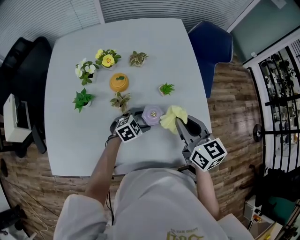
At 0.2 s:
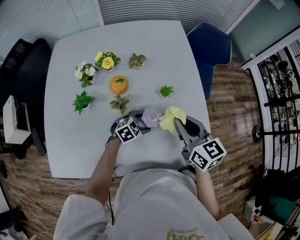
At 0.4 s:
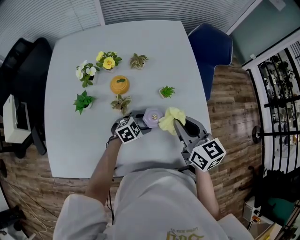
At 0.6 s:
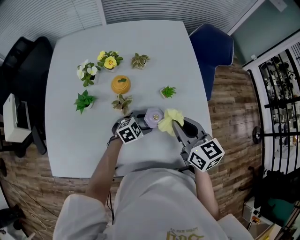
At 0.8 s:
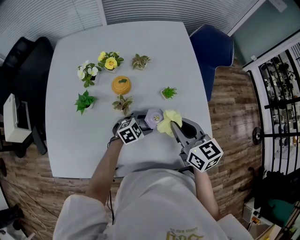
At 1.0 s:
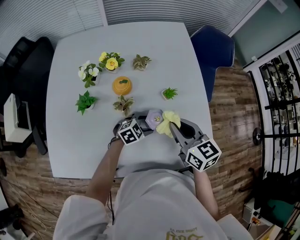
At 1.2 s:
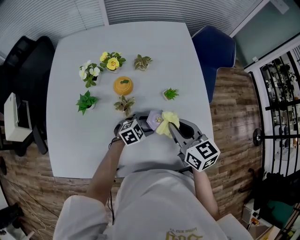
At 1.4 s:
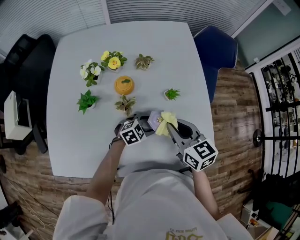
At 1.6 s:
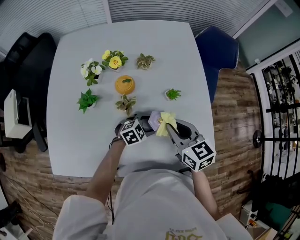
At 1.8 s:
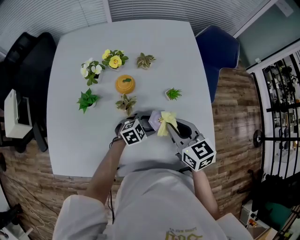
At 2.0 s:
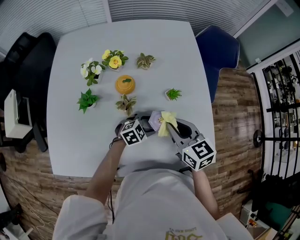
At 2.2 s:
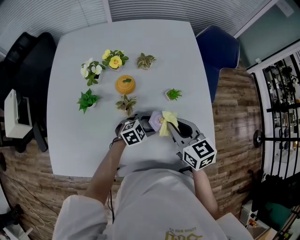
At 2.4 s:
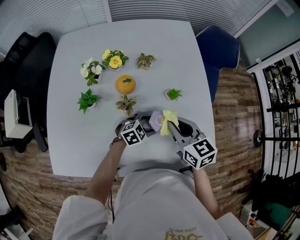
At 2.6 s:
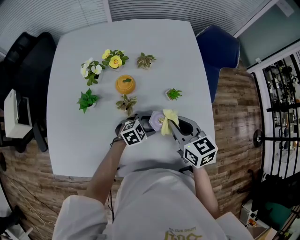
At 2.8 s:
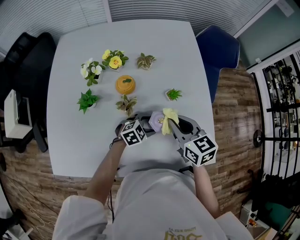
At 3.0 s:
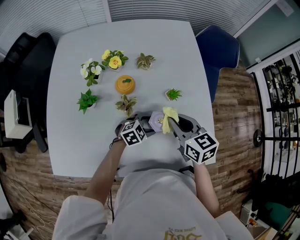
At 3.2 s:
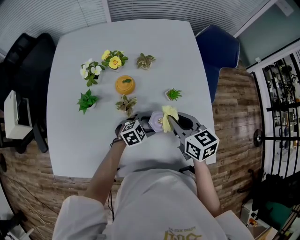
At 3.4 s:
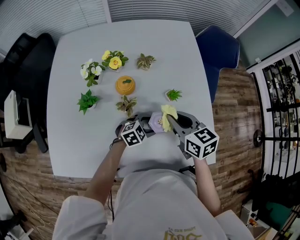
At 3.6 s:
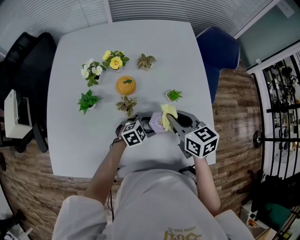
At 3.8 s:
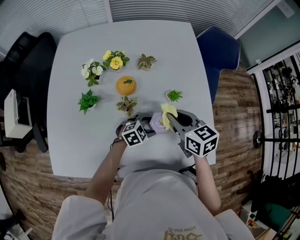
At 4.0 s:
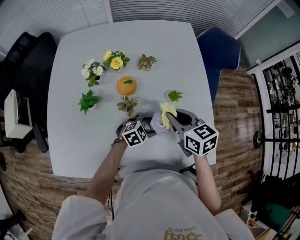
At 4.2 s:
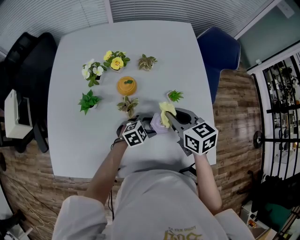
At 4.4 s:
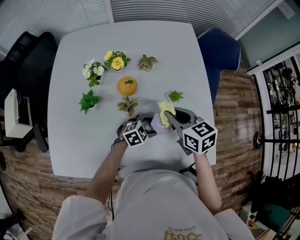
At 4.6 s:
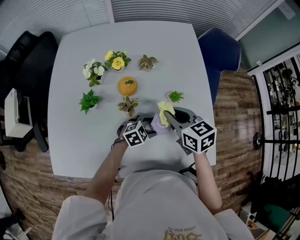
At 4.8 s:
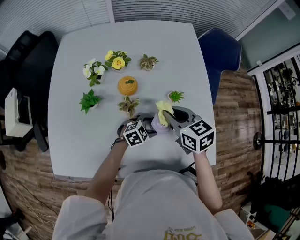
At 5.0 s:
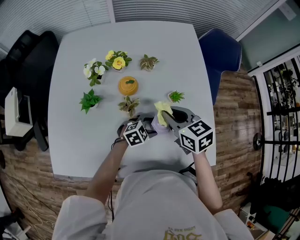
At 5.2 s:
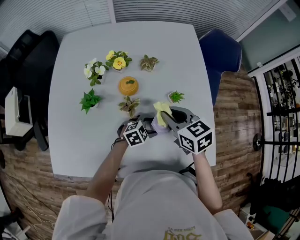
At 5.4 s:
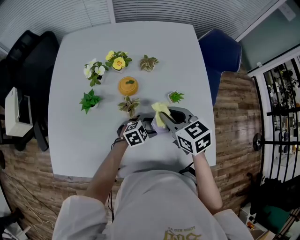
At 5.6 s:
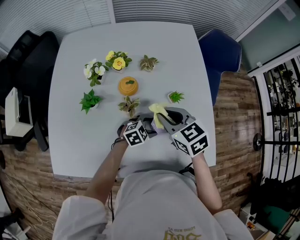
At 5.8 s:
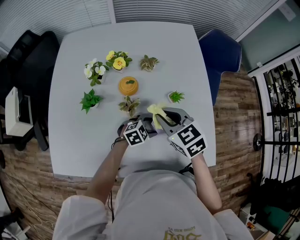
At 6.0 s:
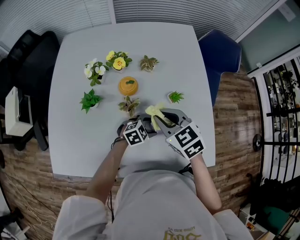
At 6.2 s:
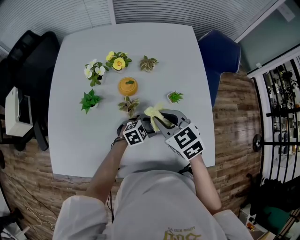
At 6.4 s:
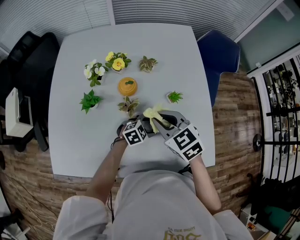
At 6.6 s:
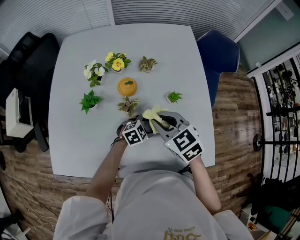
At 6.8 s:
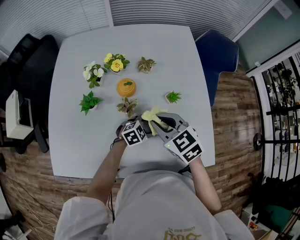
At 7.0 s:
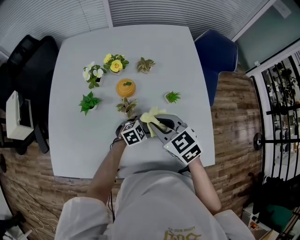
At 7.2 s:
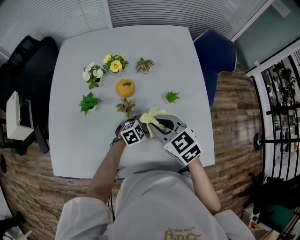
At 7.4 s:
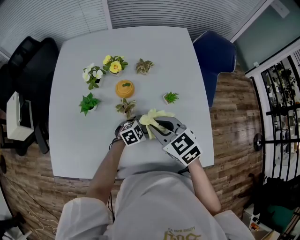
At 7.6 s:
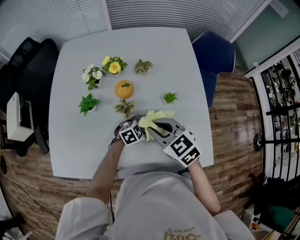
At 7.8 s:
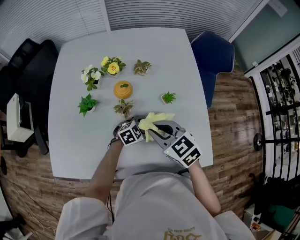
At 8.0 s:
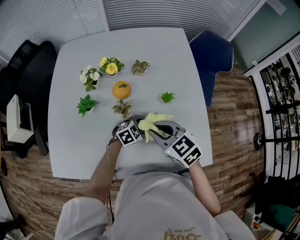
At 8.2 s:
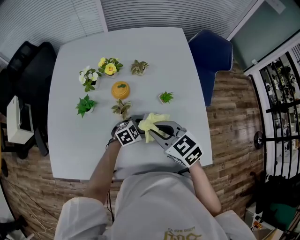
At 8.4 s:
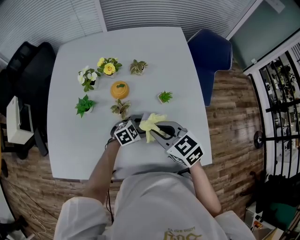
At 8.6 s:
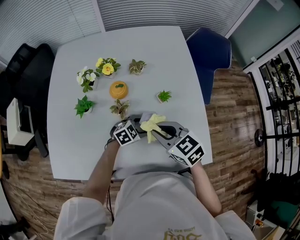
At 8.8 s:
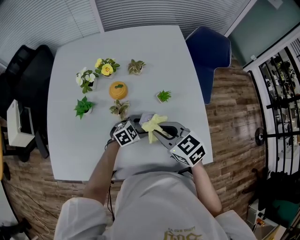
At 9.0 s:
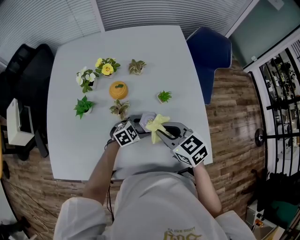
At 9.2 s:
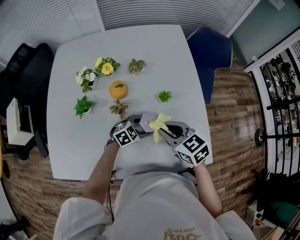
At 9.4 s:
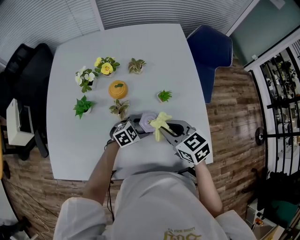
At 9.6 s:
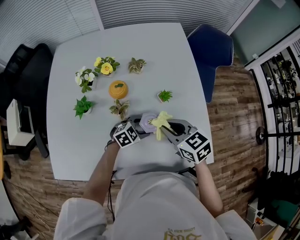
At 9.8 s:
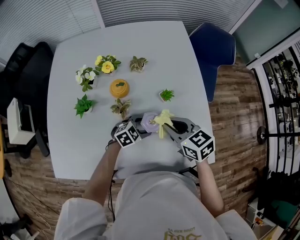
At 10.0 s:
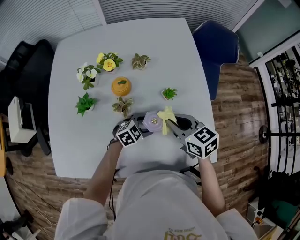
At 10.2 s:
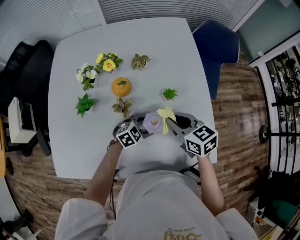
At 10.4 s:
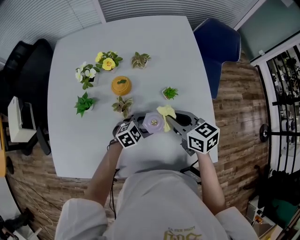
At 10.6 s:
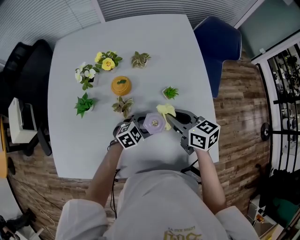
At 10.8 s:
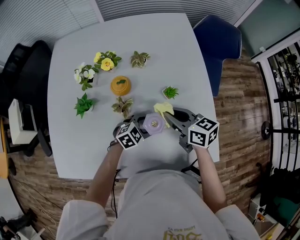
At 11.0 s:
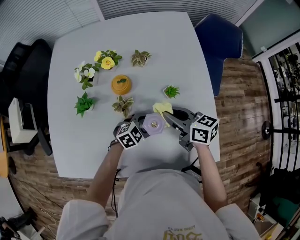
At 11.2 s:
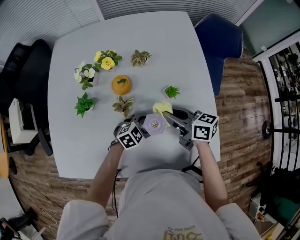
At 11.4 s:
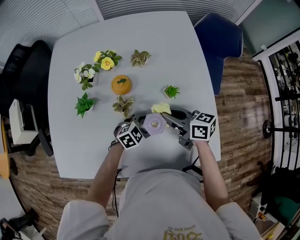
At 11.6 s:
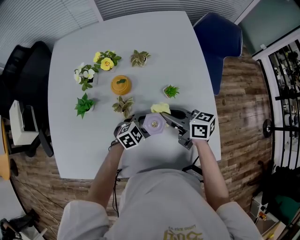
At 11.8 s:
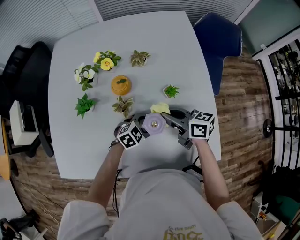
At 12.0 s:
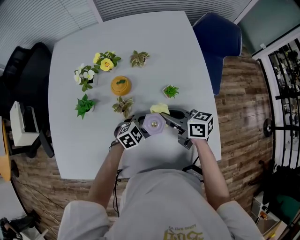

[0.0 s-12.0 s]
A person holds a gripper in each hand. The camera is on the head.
0.0 to 1.6 s: The right gripper travels to the left by roughly 5 cm.
1.6 to 4.4 s: There are only small adjustments of the grippers.
4.4 to 6.0 s: The right gripper ends up approximately 5 cm from where it was, and swivels some 20 degrees.
6.0 to 7.6 s: The grippers stay close to where they were, moving slightly.
7.6 to 9.0 s: The right gripper heads to the right, covering approximately 5 cm.
9.0 to 10.4 s: The right gripper shifts approximately 5 cm forward.
10.4 to 12.0 s: The right gripper swivels about 20 degrees.

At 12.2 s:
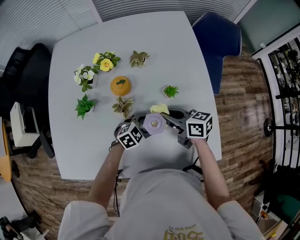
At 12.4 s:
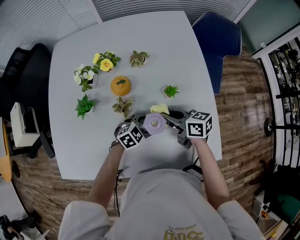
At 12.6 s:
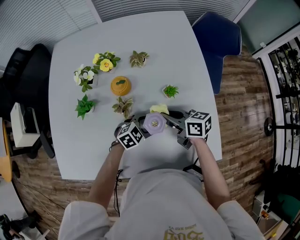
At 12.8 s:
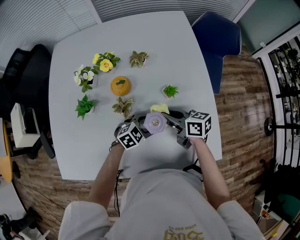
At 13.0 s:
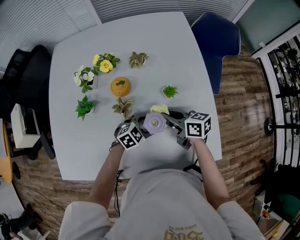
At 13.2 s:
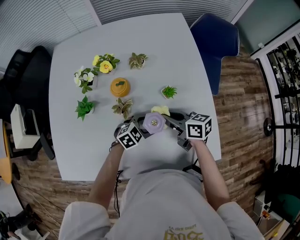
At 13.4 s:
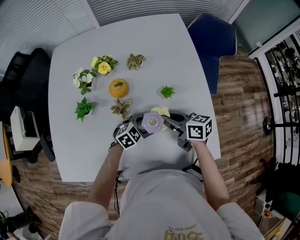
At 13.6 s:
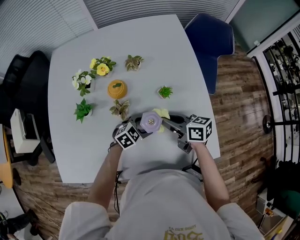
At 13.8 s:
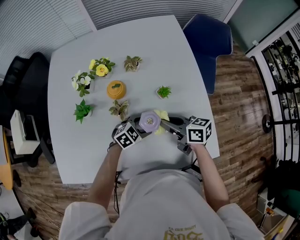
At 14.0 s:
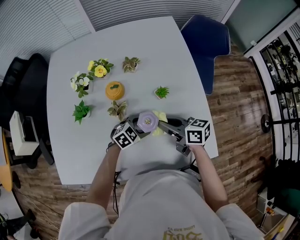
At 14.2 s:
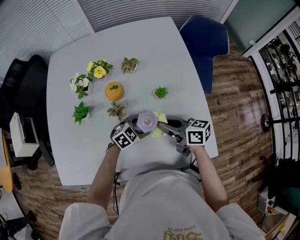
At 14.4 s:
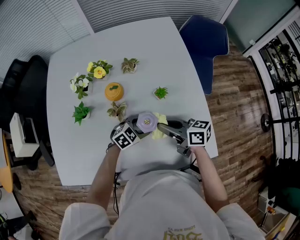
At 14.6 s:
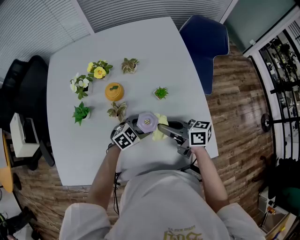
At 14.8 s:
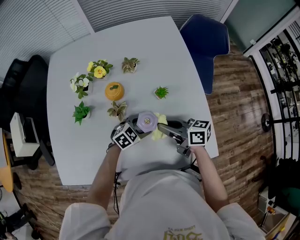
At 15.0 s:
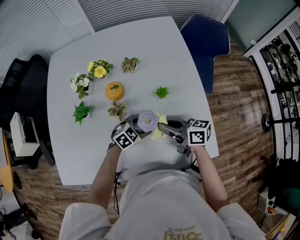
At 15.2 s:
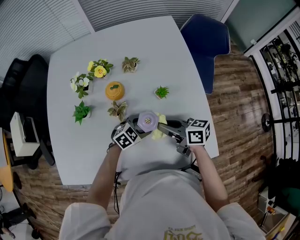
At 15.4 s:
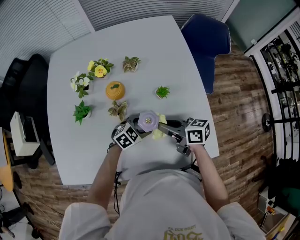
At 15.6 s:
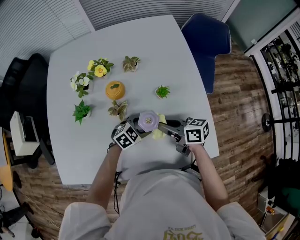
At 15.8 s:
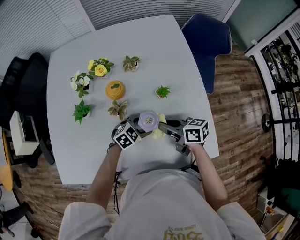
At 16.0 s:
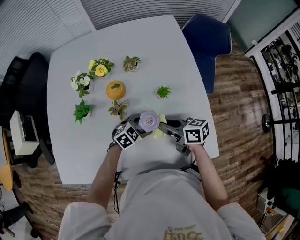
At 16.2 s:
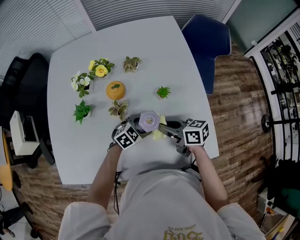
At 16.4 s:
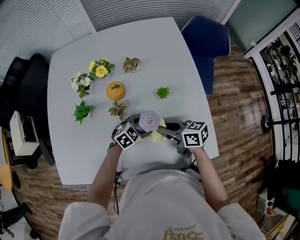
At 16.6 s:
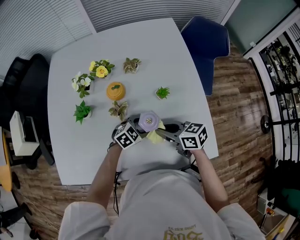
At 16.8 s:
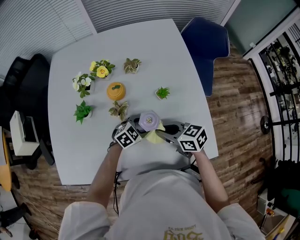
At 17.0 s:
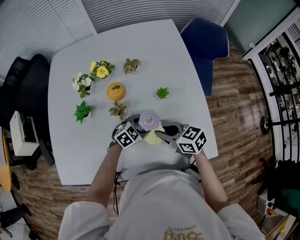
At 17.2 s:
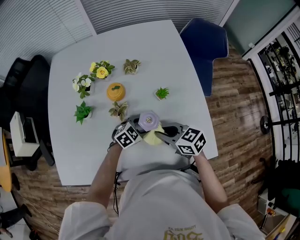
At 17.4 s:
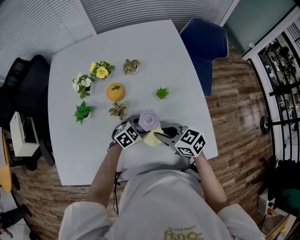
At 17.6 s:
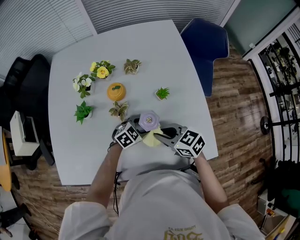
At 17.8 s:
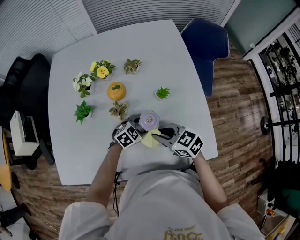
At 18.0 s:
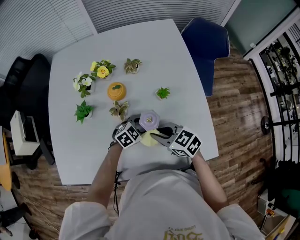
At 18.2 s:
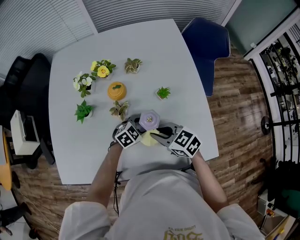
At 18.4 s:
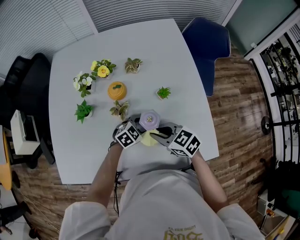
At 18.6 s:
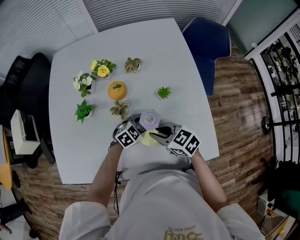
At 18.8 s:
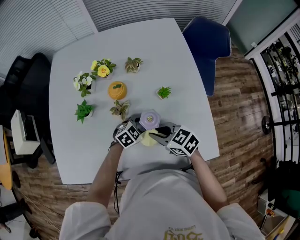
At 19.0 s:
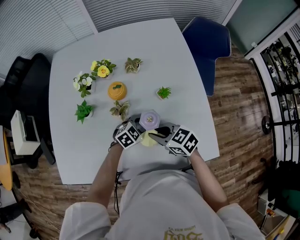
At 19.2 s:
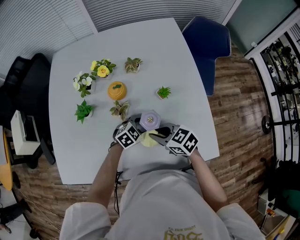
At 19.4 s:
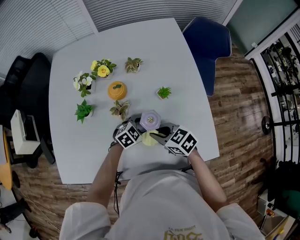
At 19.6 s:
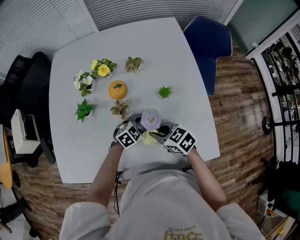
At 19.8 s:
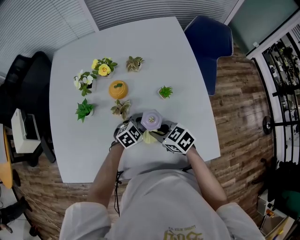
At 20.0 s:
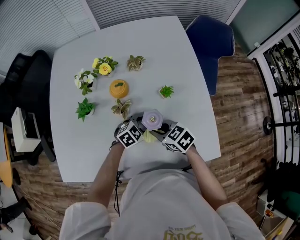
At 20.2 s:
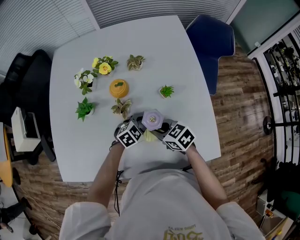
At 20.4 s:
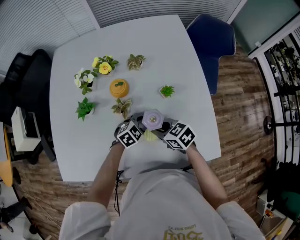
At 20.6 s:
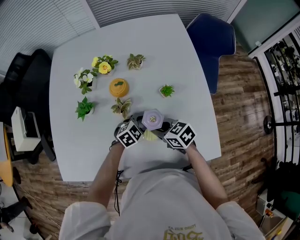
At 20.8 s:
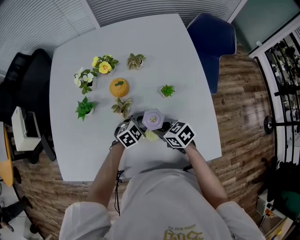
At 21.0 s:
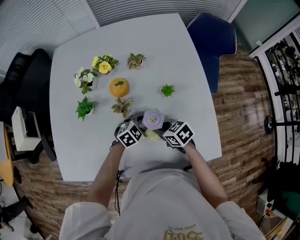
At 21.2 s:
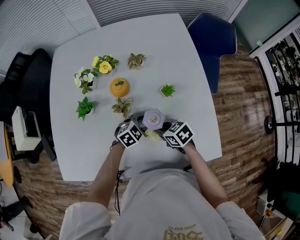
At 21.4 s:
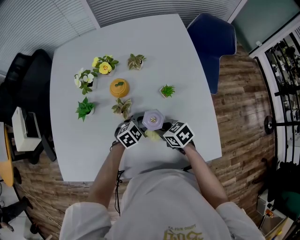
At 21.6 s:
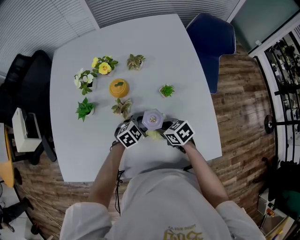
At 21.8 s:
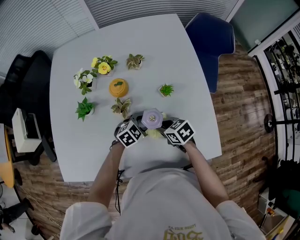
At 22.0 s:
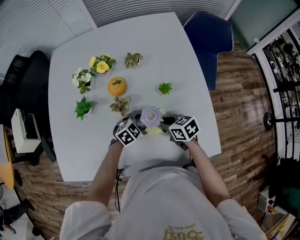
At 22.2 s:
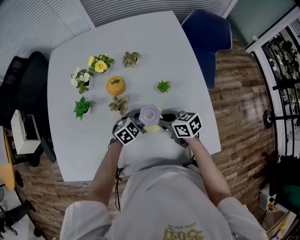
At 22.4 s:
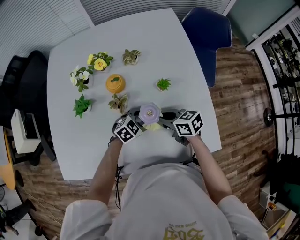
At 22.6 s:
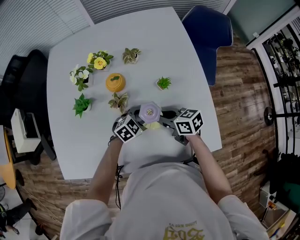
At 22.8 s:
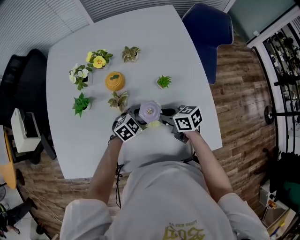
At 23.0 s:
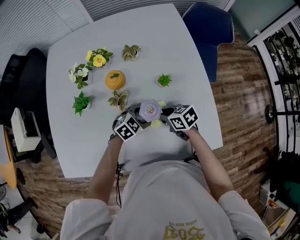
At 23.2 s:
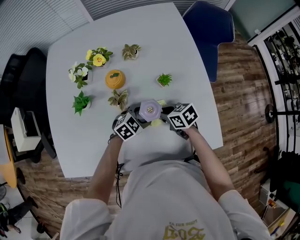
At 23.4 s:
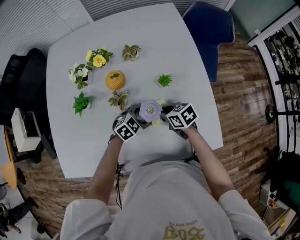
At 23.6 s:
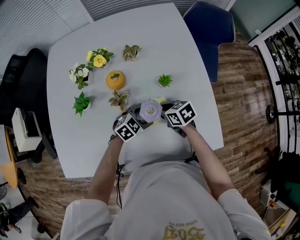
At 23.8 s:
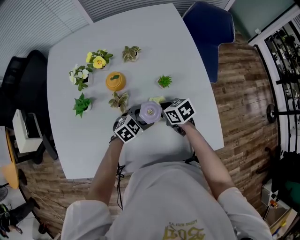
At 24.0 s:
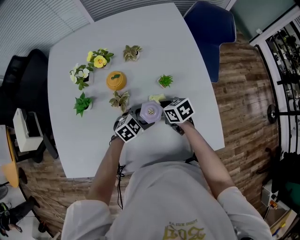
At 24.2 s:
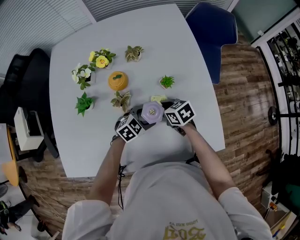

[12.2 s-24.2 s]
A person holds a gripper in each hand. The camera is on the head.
12.2 to 15.2 s: There are only small adjustments of the grippers.
15.2 to 16.6 s: There are only small adjustments of the grippers.
16.6 to 18.2 s: The right gripper swivels about 20 degrees.
18.2 to 19.8 s: The grippers make only small movements.
19.8 to 21.2 s: The right gripper moves about 5 cm.
21.2 to 22.6 s: The right gripper moves some 5 cm, and rotates roughly 20 degrees.
22.6 to 24.2 s: The right gripper moves downward, some 5 cm.
